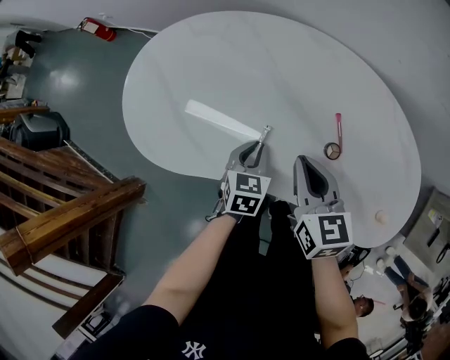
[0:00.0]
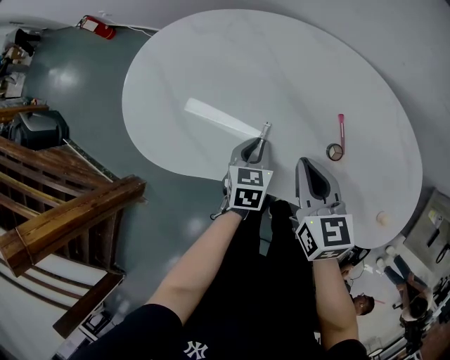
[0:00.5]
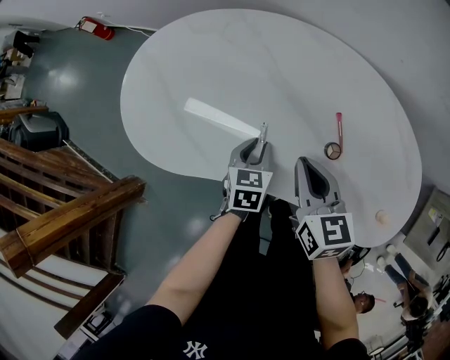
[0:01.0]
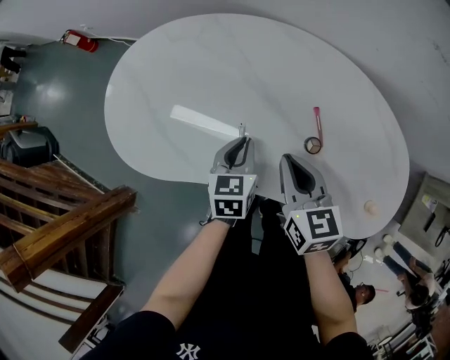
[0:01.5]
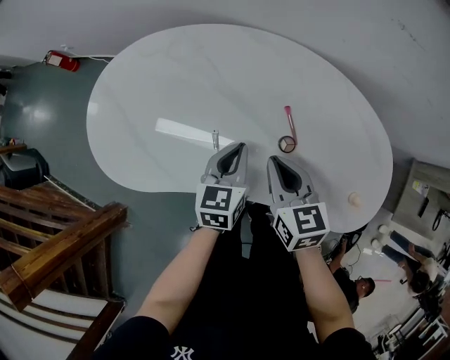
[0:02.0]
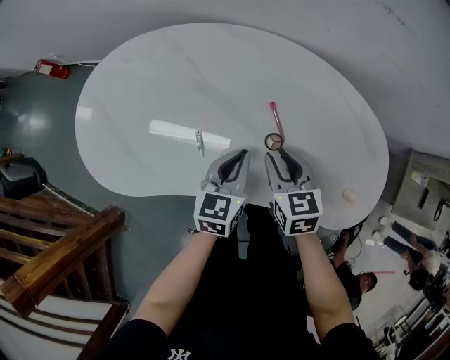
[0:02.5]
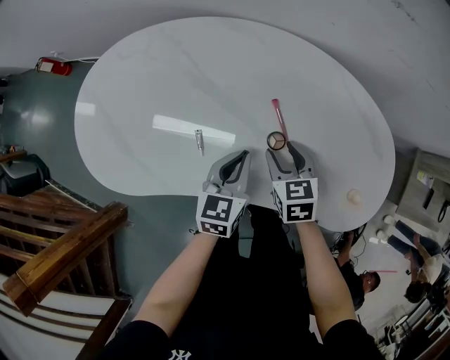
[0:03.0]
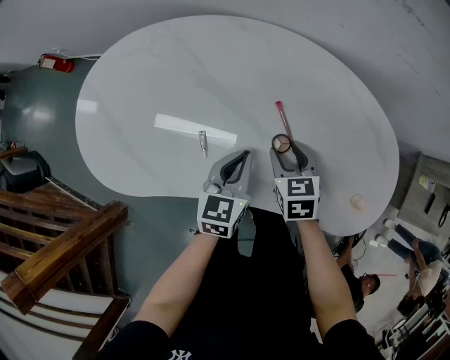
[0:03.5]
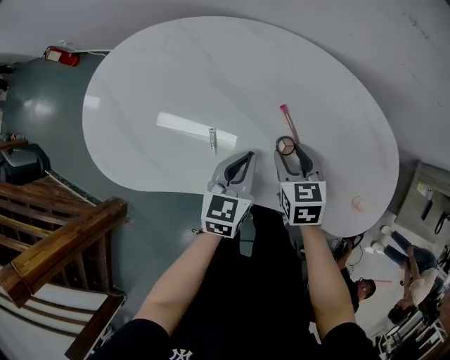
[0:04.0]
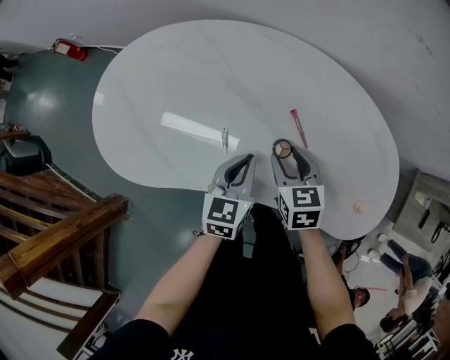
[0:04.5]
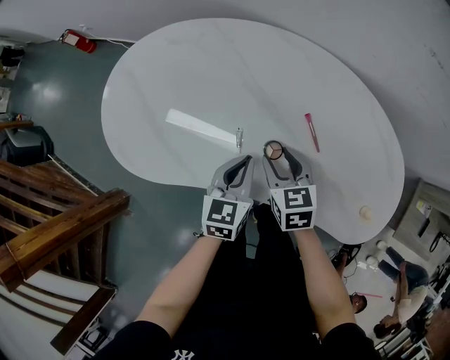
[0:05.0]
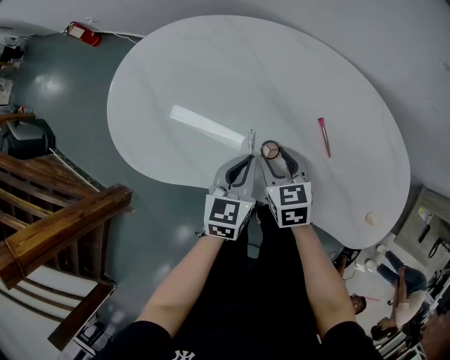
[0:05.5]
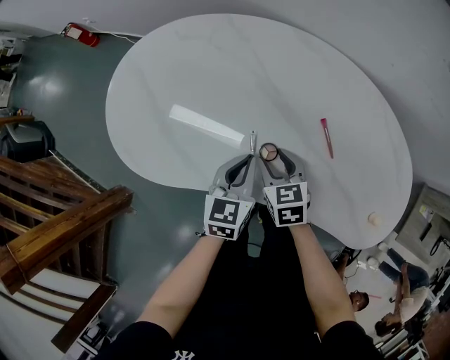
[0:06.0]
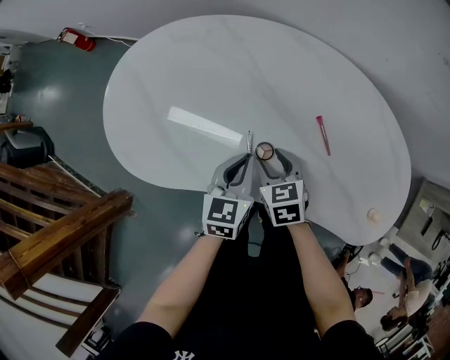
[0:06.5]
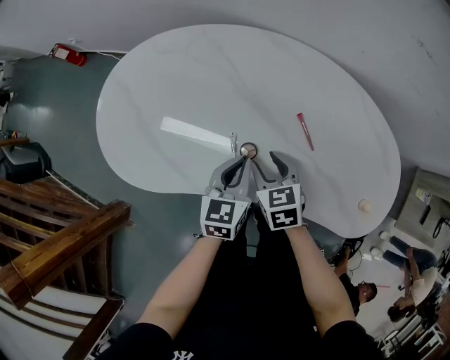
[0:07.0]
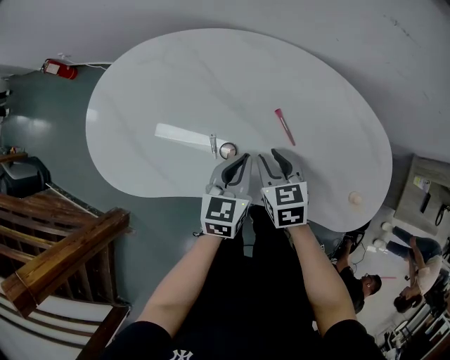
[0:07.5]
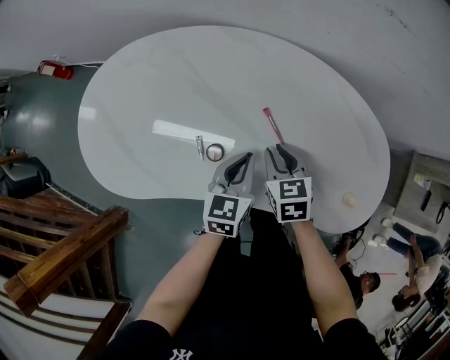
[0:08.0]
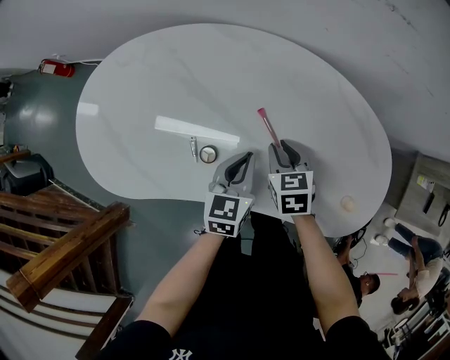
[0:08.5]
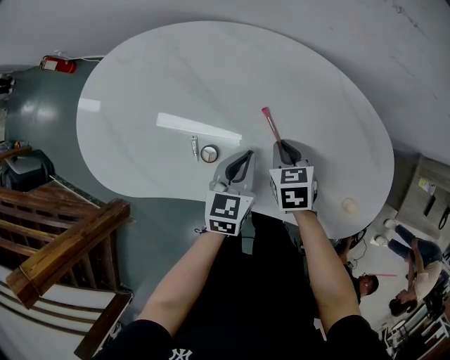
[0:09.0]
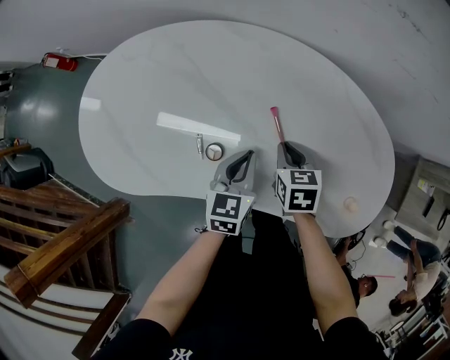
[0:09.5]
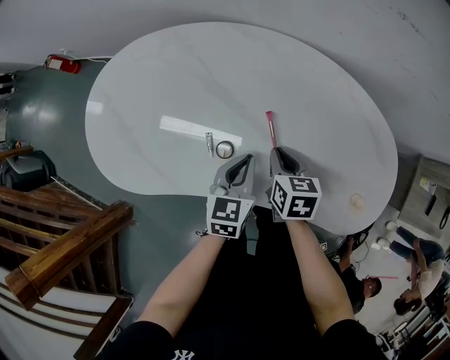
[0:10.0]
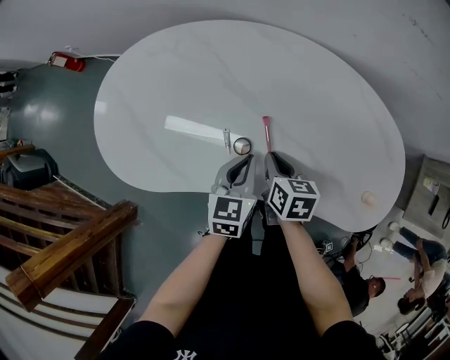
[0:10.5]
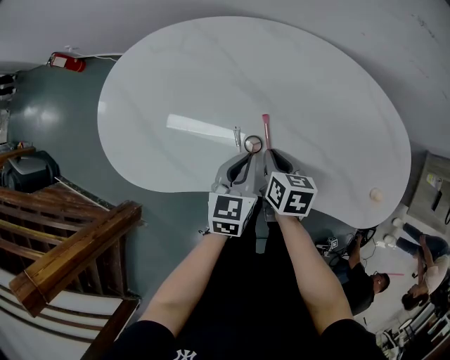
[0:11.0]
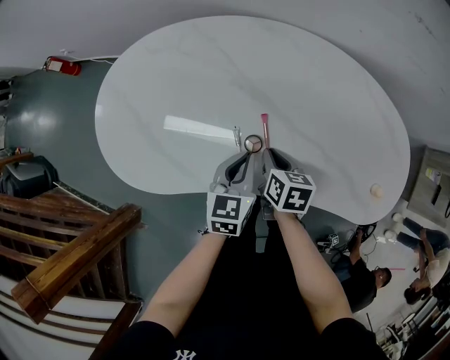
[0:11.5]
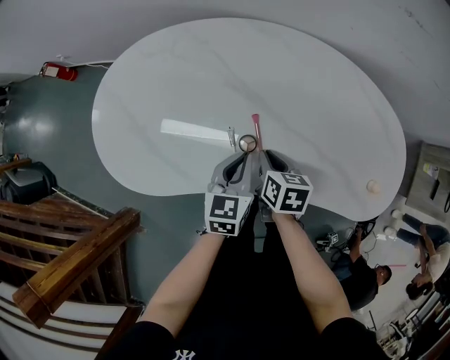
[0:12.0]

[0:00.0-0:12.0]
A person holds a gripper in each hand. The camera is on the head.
0:00.0 to 0:02.0: The right gripper travels to the right by about 5 cm. Meanwhile the left gripper is displaced to the right and upward by about 10 cm.
0:02.0 to 0:04.0: The right gripper shifts roughly 10 cm downward and to the right, and opens its fingers.
0:04.0 to 0:06.0: Both grippers move to the left, approximately 15 cm.
0:06.0 to 0:08.0: Both grippers move to the right, about 15 cm. The right gripper closes.
0:08.0 to 0:10.0: There are only small adjustments of the grippers.
0:10.0 to 0:12.0: The two grippers go approximately 10 cm to the left.

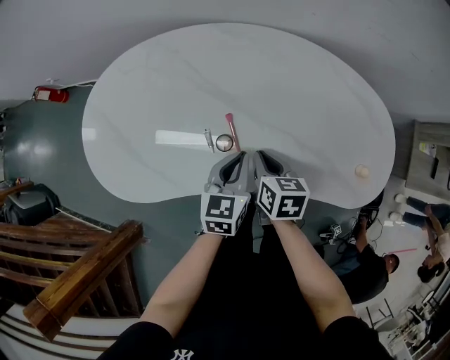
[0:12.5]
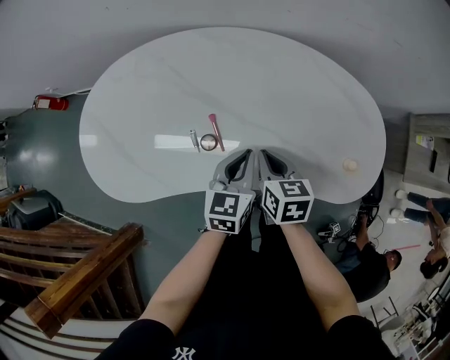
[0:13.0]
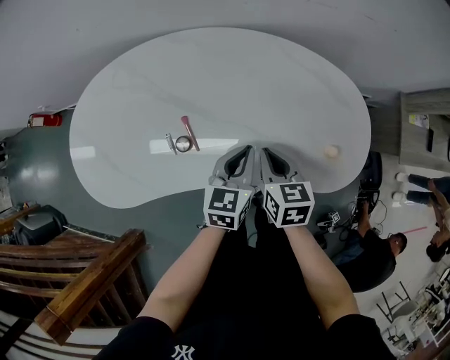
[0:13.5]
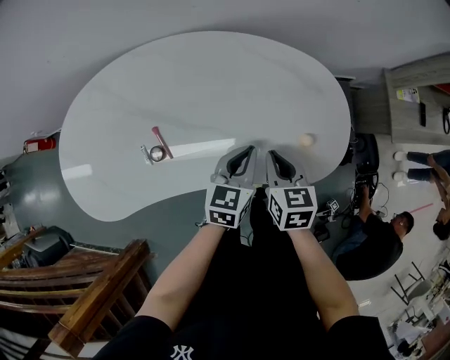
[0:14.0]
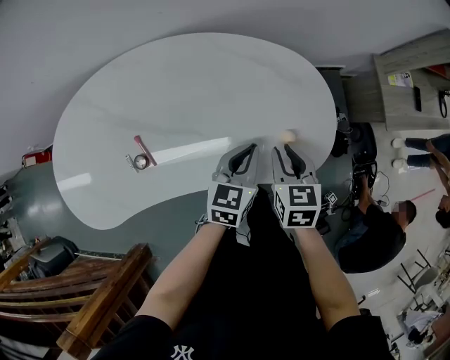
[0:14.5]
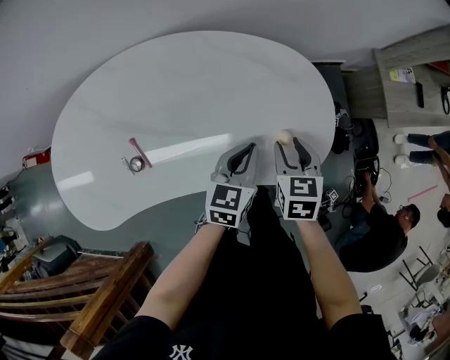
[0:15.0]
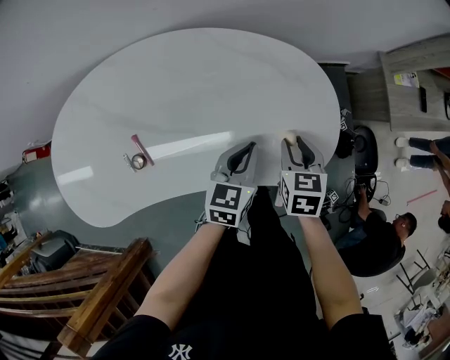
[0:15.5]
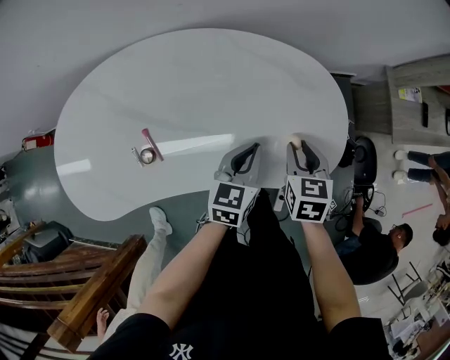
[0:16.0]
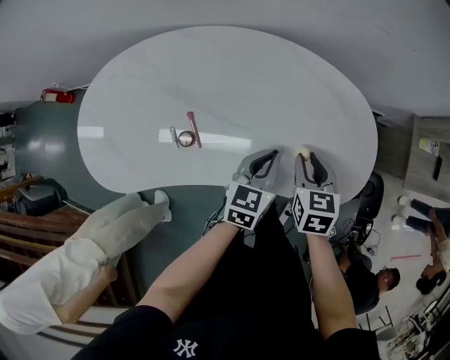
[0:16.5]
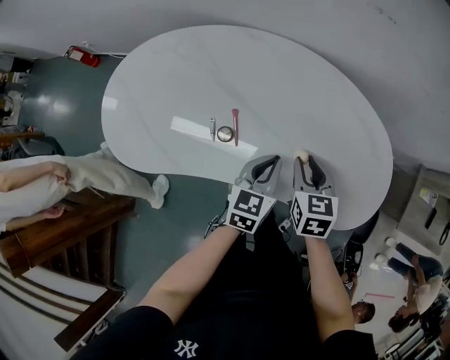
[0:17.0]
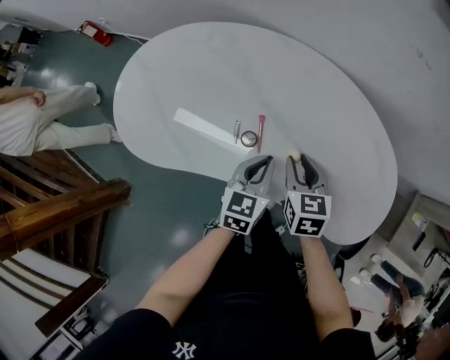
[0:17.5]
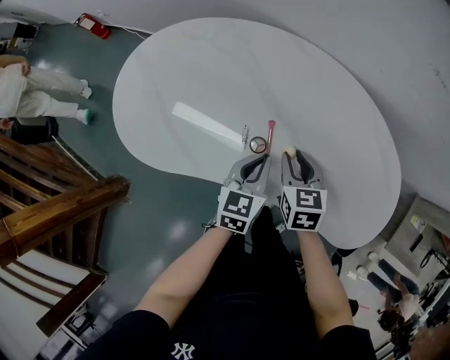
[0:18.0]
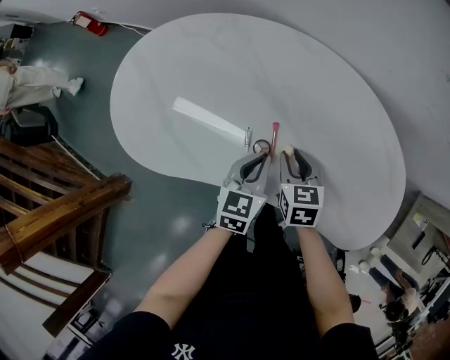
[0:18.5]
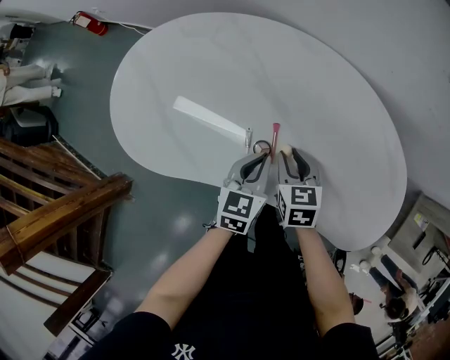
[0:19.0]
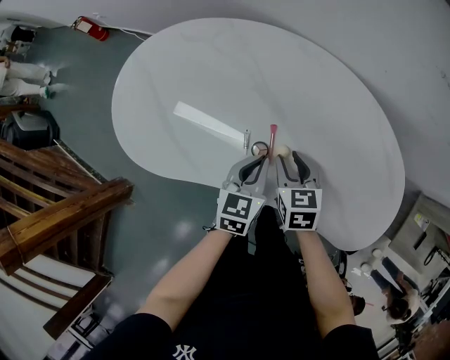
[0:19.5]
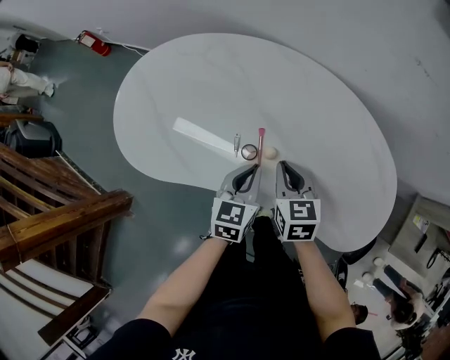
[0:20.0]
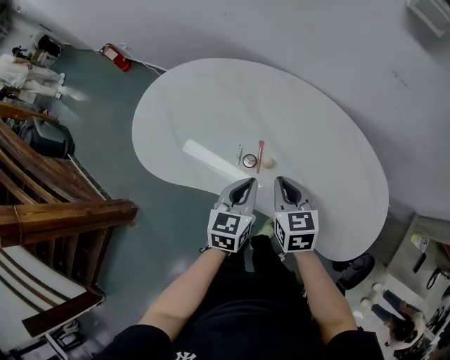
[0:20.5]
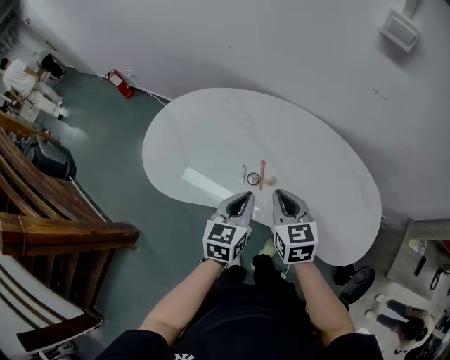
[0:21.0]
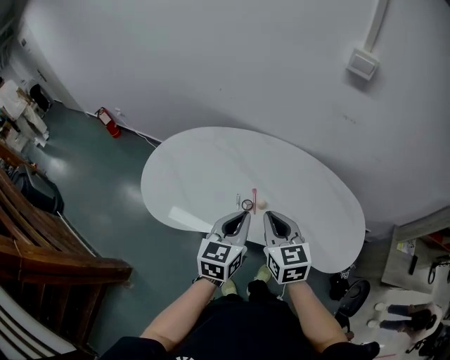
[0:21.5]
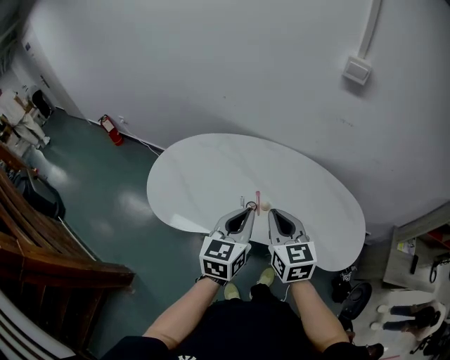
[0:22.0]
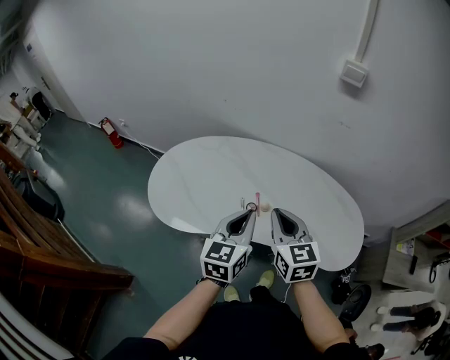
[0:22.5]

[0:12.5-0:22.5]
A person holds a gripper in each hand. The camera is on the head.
0:12.5 to 0:14.5: The right gripper shifts by approximately 30 cm, and rotates some 20 degrees. Meanwhile the left gripper ends up roughly 30 cm from where it was, and rotates some 20 degrees.
0:14.5 to 0:16.5: The grippers both shift to the left by roughly 10 cm.
0:16.5 to 0:18.5: The left gripper moves some 25 cm, and turns by about 20 degrees; the right gripper changes place by some 30 cm, and changes its angle by about 30 degrees.
0:18.5 to 0:20.5: The grippers both shift upward and backward by roughly 10 cm. The right gripper closes its fingers.
0:20.5 to 0:22.5: The right gripper heads upward and backward, covering some 20 cm, and changes its angle by approximately 20 degrees. Meanwhile the left gripper heads upward, covering some 20 cm.

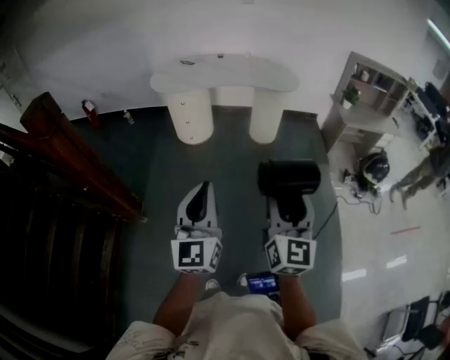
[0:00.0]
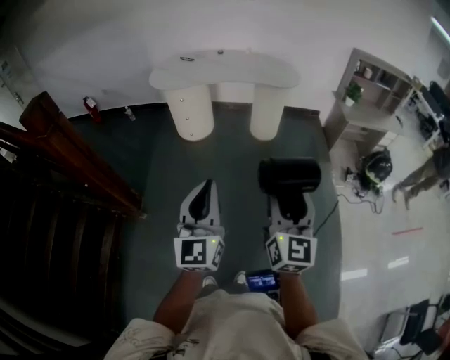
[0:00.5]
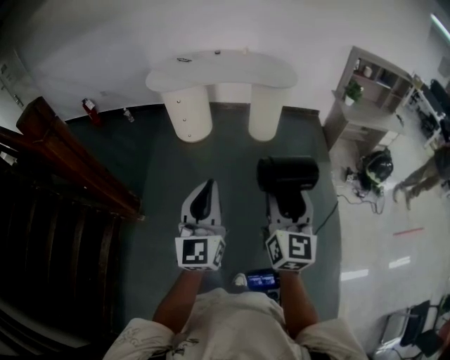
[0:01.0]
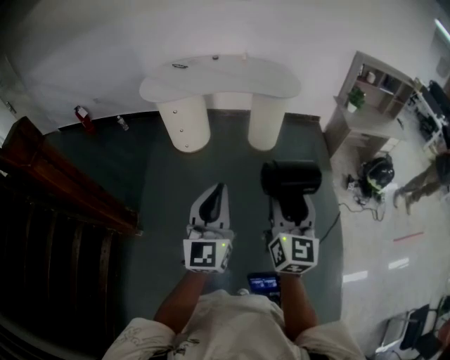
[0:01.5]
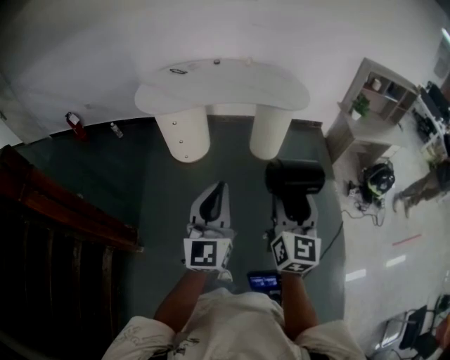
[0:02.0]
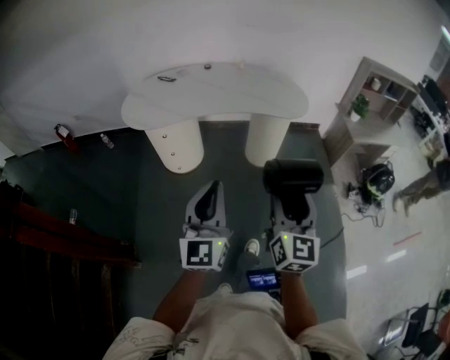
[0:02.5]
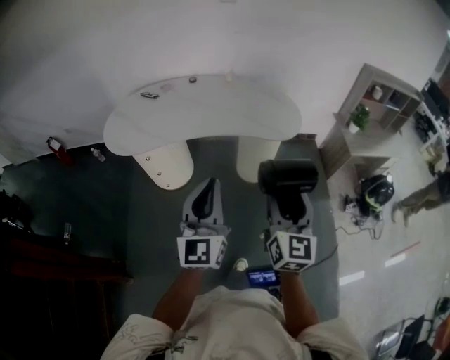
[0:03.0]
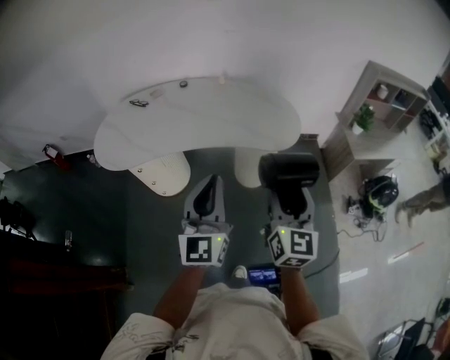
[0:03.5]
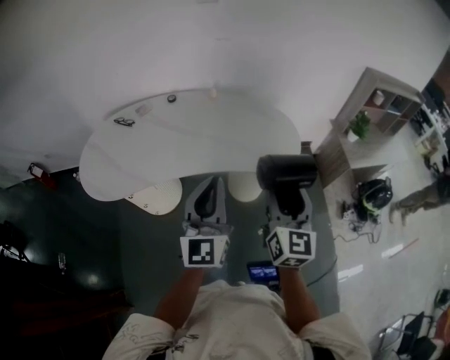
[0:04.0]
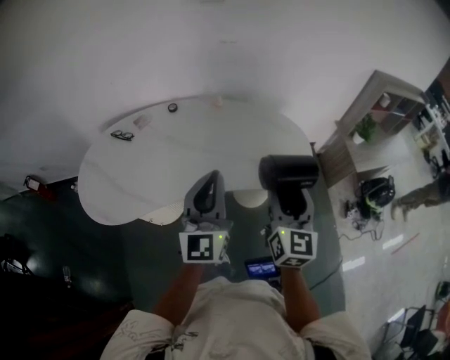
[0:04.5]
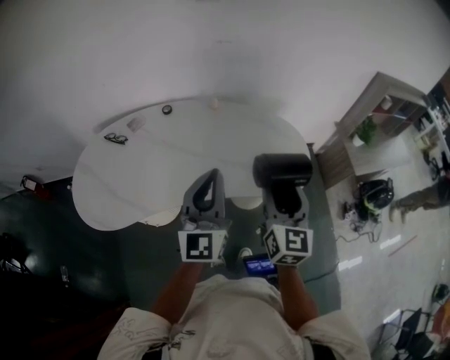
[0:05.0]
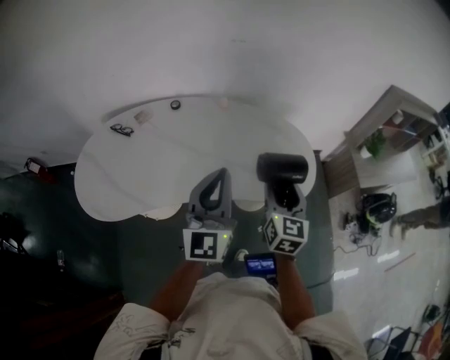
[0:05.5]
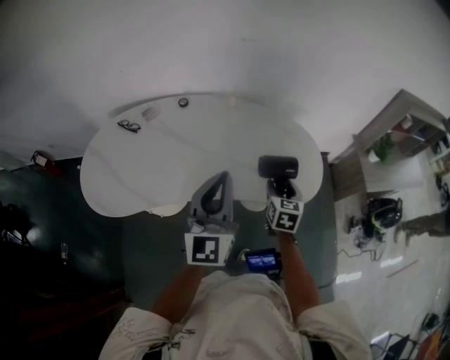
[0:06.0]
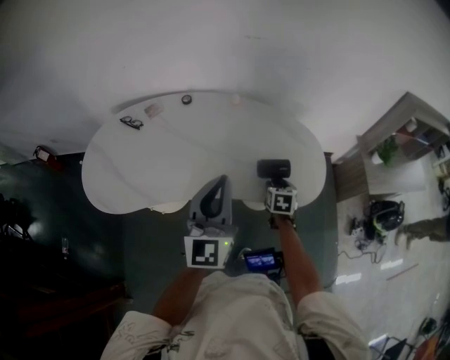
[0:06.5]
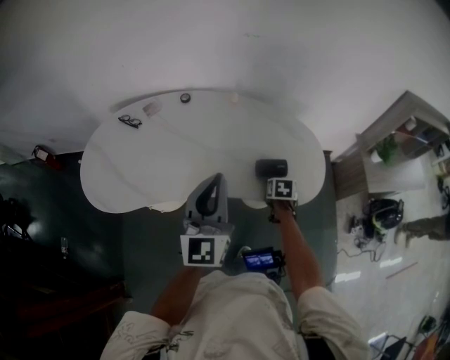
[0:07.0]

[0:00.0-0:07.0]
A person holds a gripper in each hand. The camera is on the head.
0:00.0 to 0:02.0: The grippers both shift forward by approximately 30 cm.
0:02.0 to 0:03.5: Both grippers travel together forward, roughly 40 cm.
0:03.5 to 0:05.0: Both grippers move forward, some 25 cm.
0:05.0 to 0:07.0: The right gripper heads downward, covering approximately 30 cm, and points its fingers approximately 60 degrees further downward.
